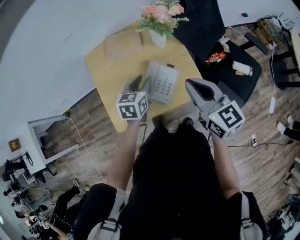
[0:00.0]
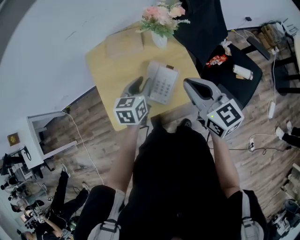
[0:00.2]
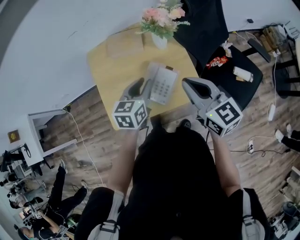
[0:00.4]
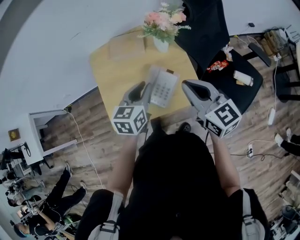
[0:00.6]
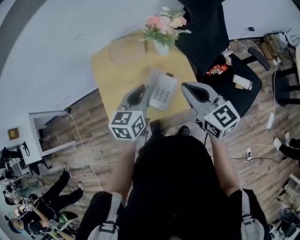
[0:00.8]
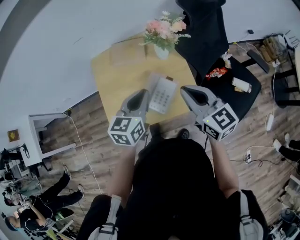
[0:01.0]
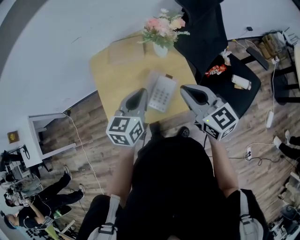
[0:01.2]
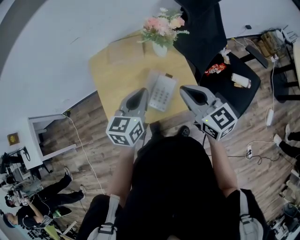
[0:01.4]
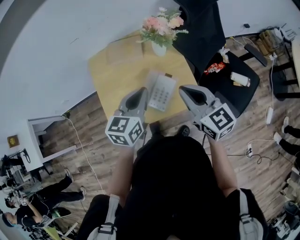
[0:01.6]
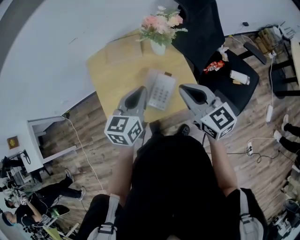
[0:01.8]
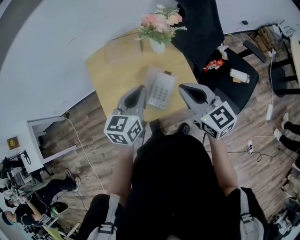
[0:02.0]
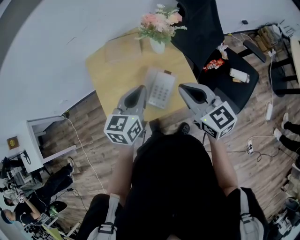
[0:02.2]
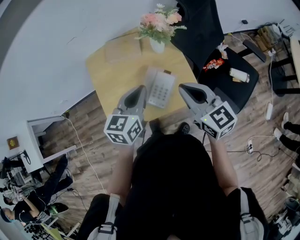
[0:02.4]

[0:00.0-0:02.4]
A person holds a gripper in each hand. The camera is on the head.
0:00.0 to 0:01.2: The left gripper goes approximately 10 cm upward, and closes.
0:01.2 to 0:02.4: The grippers make only small movements.

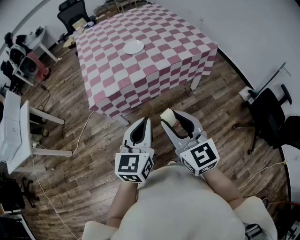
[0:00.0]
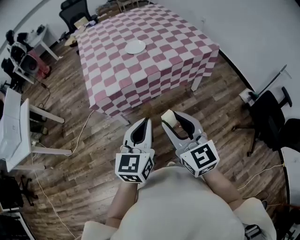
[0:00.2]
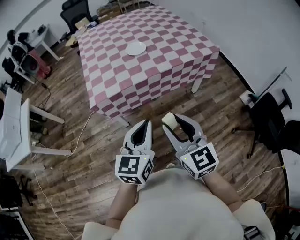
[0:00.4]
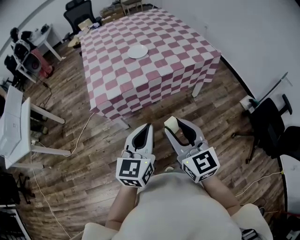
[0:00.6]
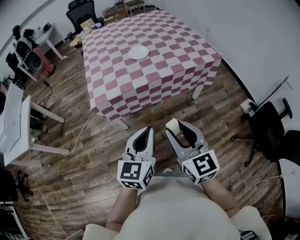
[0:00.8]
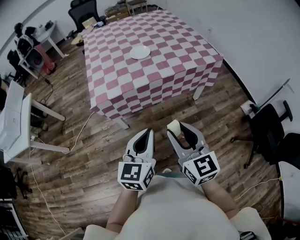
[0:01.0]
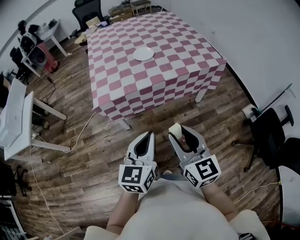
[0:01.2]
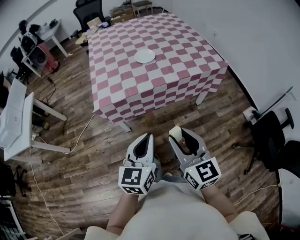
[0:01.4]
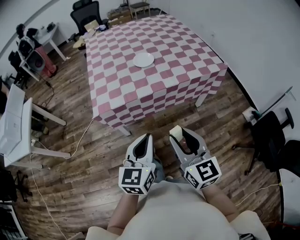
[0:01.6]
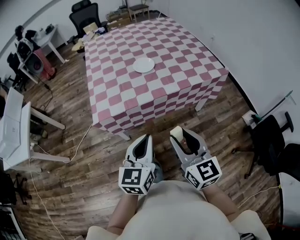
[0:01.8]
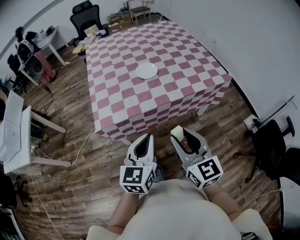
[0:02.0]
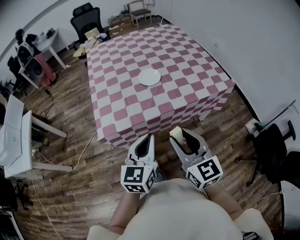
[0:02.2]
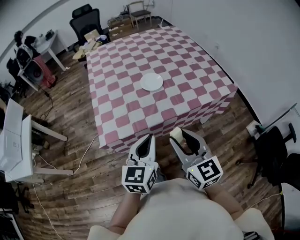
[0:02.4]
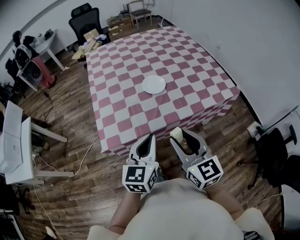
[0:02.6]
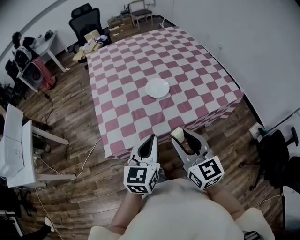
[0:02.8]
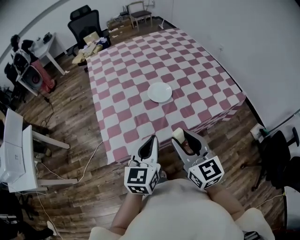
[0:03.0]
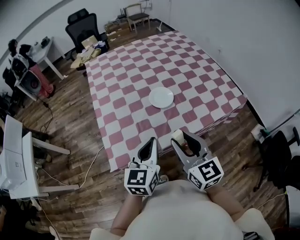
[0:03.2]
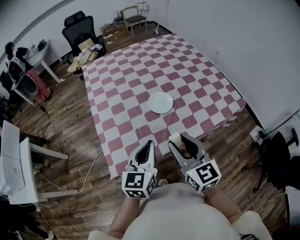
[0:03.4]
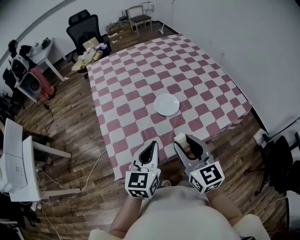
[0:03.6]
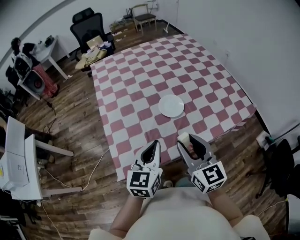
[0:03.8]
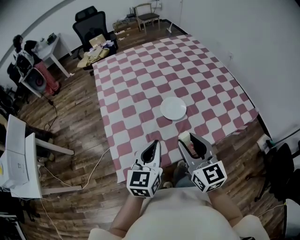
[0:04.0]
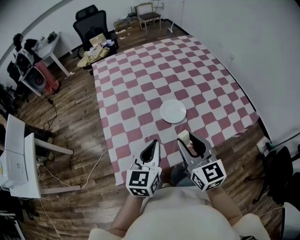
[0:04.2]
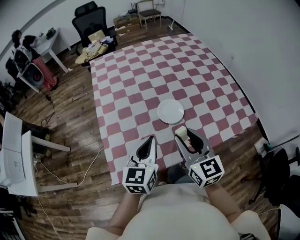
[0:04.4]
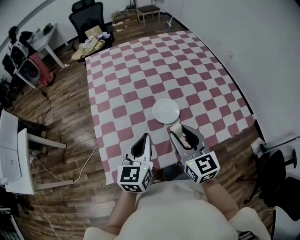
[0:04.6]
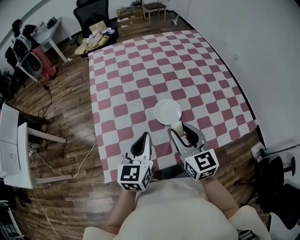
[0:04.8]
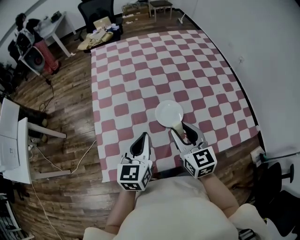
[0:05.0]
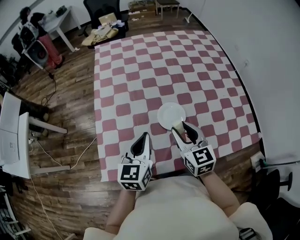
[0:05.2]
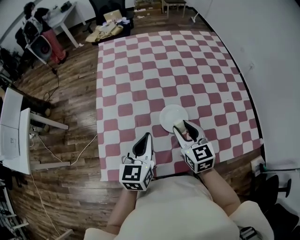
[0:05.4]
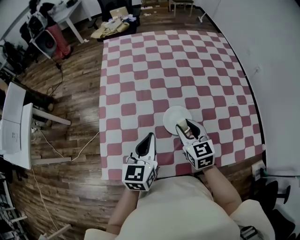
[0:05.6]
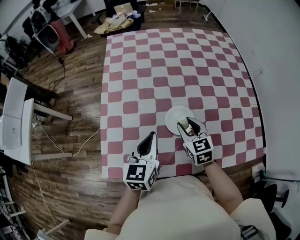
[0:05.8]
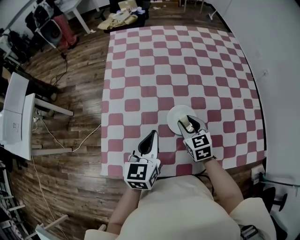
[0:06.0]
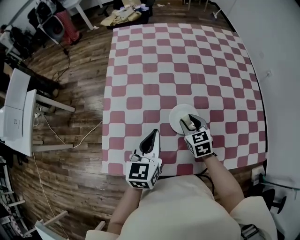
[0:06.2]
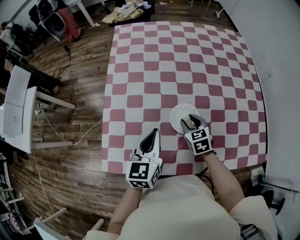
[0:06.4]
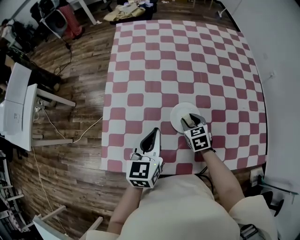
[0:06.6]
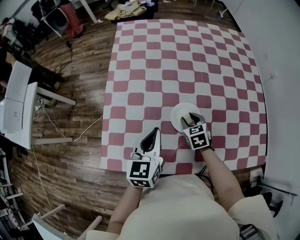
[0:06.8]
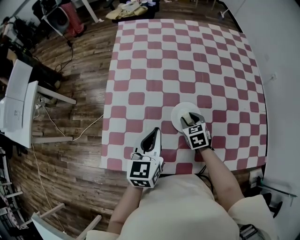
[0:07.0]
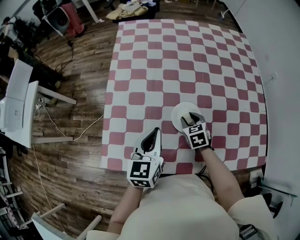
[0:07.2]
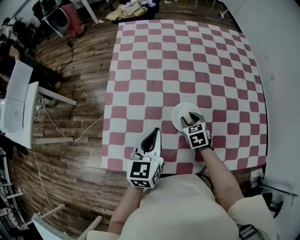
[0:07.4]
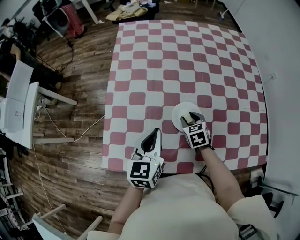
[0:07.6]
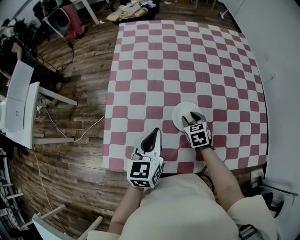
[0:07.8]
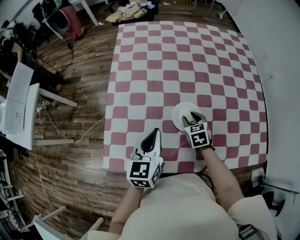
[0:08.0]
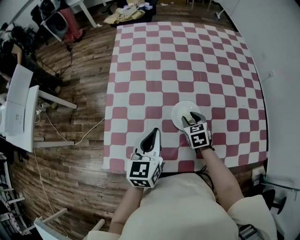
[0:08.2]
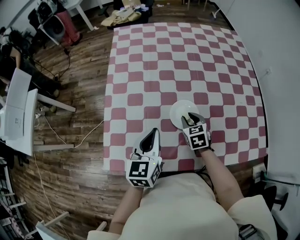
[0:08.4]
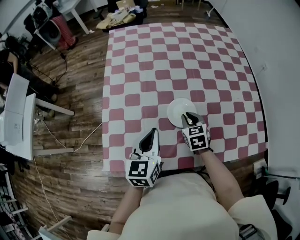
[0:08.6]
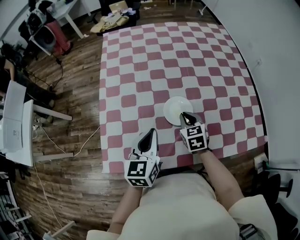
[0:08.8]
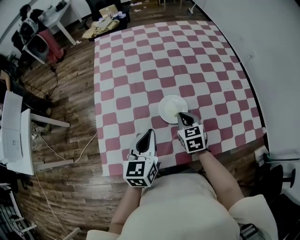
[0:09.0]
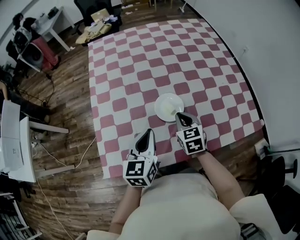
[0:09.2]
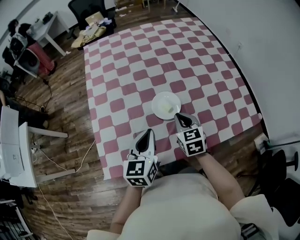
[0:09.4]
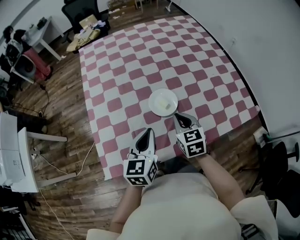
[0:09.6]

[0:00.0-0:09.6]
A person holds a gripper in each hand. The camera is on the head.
0:00.0 to 0:01.6: There are only small adjustments of the grippers.
0:01.6 to 0:03.2: Both grippers travel together forward, about 30 cm.
0:03.2 to 0:04.8: Both grippers travel together forward, roughly 15 cm.
0:04.8 to 0:06.4: The right gripper heads downward and forward, covering roughly 25 cm, and rotates some 30 degrees. Meanwhile the left gripper shifts approximately 5 cm forward.
0:06.4 to 0:08.0: There are only small adjustments of the grippers.
0:08.0 to 0:09.6: The right gripper travels backward and upward by approximately 15 cm, rotates approximately 20 degrees, and closes its fingers. The left gripper shifts about 5 cm backward.

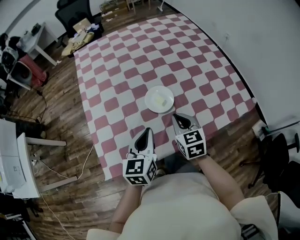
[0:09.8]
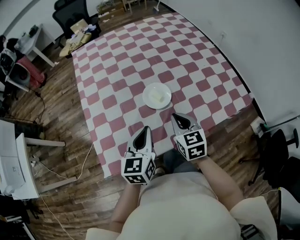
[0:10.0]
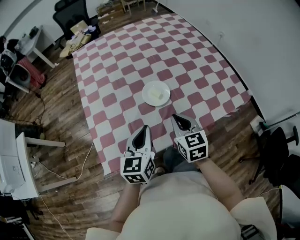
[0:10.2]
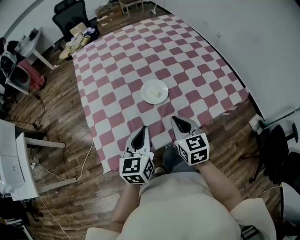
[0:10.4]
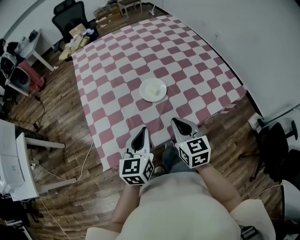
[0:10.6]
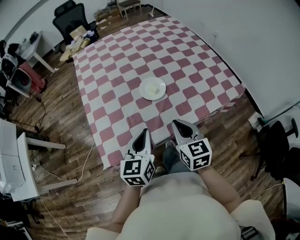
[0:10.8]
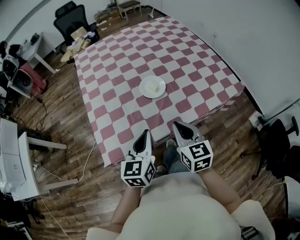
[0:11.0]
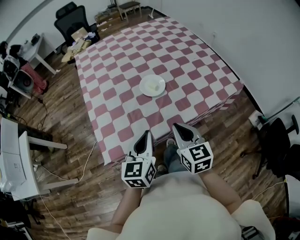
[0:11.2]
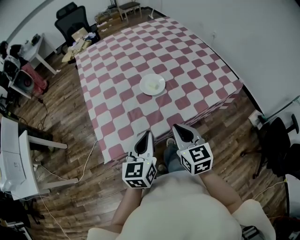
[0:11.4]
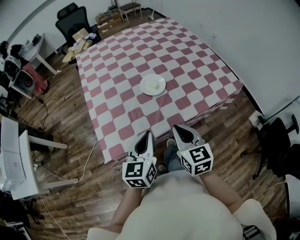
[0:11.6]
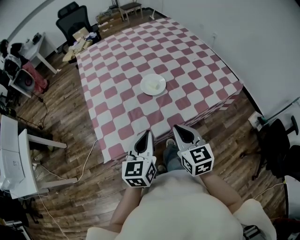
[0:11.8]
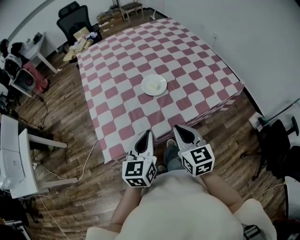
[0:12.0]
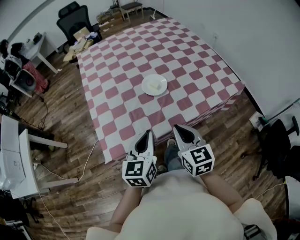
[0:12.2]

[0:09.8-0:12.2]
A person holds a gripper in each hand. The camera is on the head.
0:09.8 to 0:11.0: Both grippers travel together backward, approximately 15 cm.
0:11.0 to 0:12.2: The grippers stay close to where they were, moving slightly.

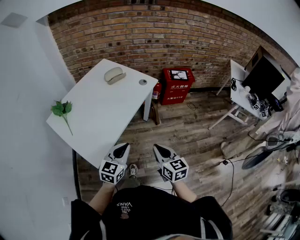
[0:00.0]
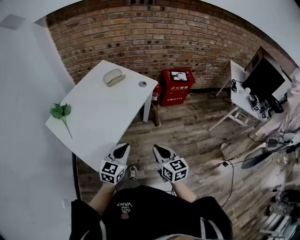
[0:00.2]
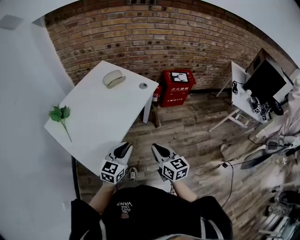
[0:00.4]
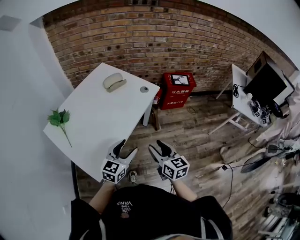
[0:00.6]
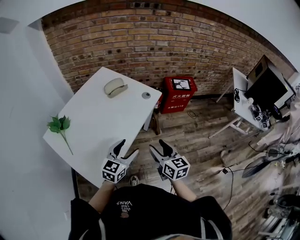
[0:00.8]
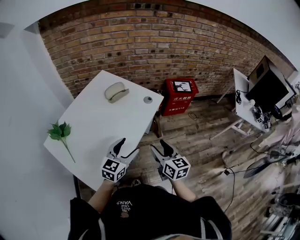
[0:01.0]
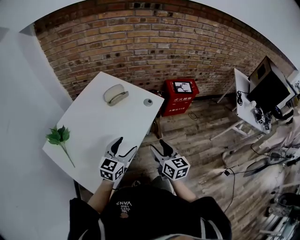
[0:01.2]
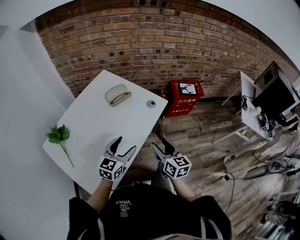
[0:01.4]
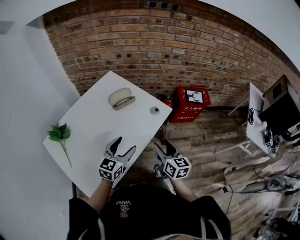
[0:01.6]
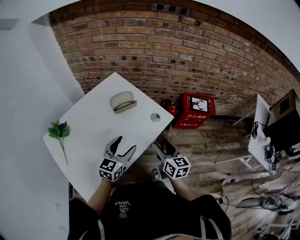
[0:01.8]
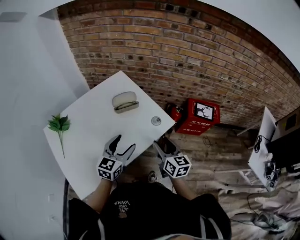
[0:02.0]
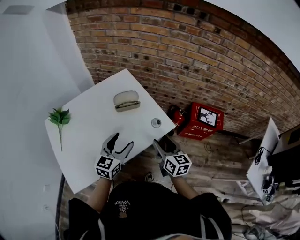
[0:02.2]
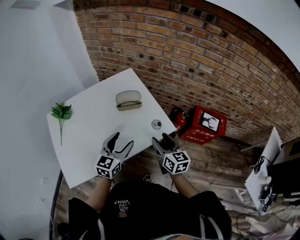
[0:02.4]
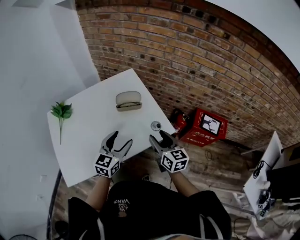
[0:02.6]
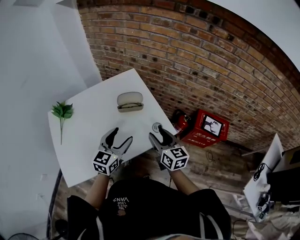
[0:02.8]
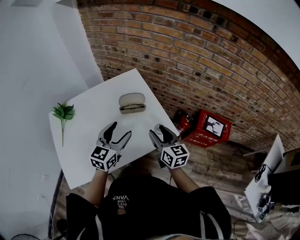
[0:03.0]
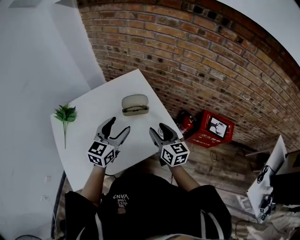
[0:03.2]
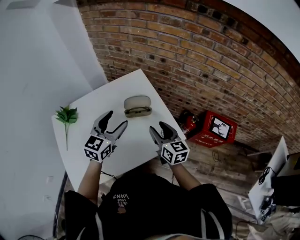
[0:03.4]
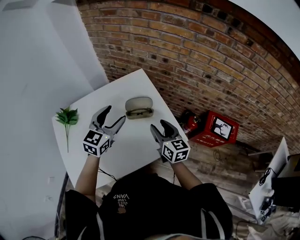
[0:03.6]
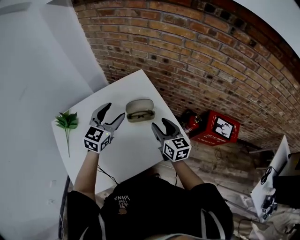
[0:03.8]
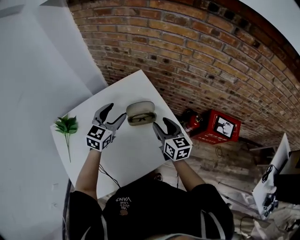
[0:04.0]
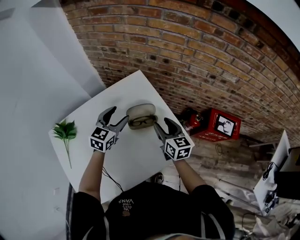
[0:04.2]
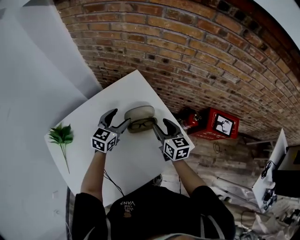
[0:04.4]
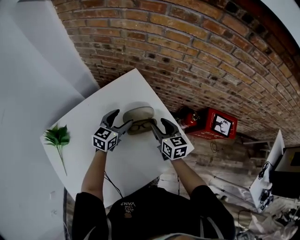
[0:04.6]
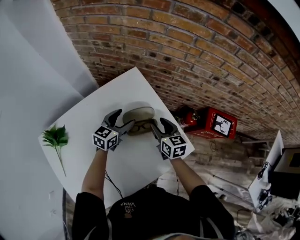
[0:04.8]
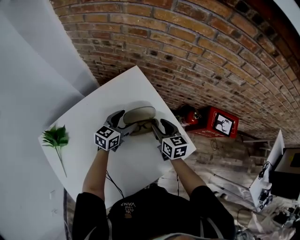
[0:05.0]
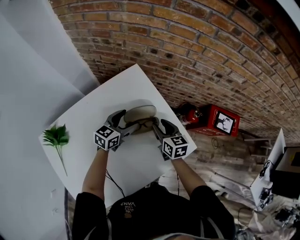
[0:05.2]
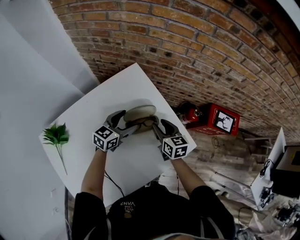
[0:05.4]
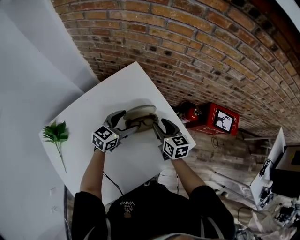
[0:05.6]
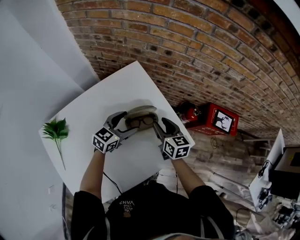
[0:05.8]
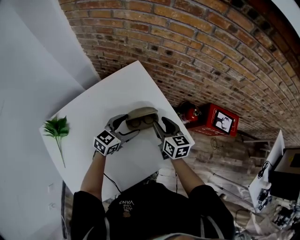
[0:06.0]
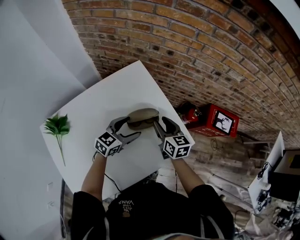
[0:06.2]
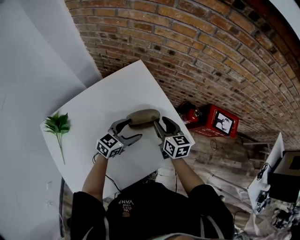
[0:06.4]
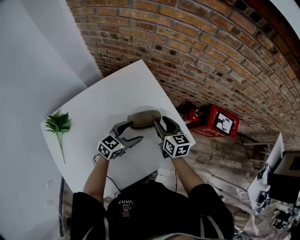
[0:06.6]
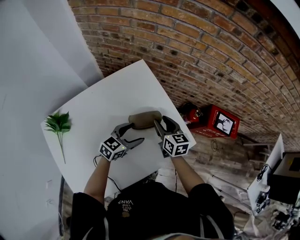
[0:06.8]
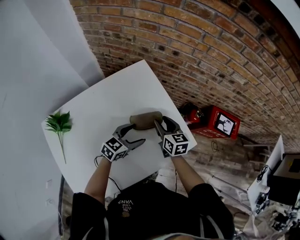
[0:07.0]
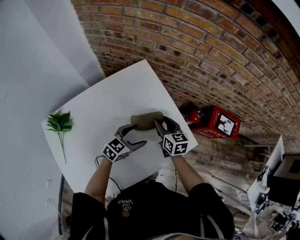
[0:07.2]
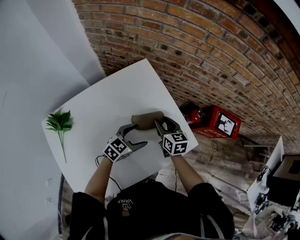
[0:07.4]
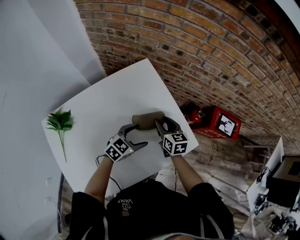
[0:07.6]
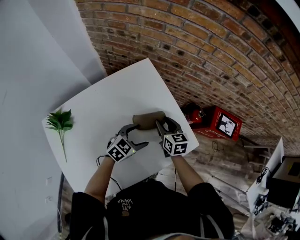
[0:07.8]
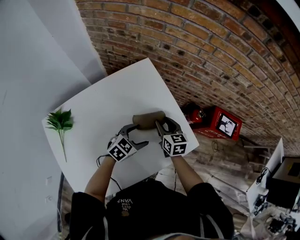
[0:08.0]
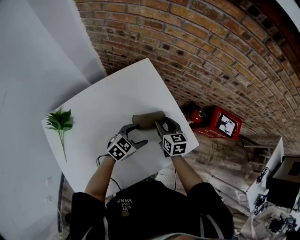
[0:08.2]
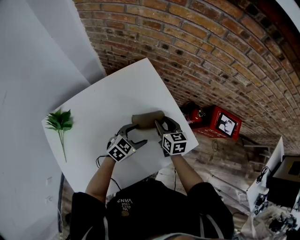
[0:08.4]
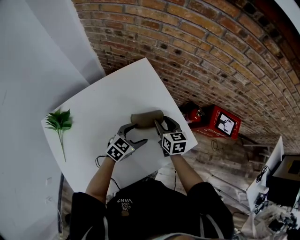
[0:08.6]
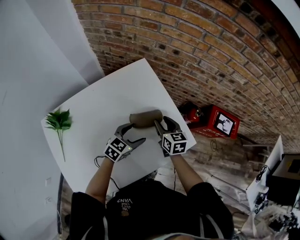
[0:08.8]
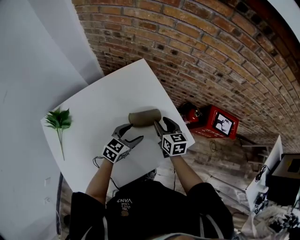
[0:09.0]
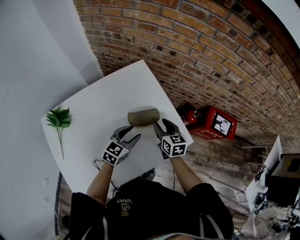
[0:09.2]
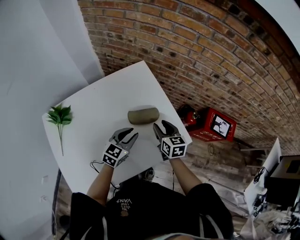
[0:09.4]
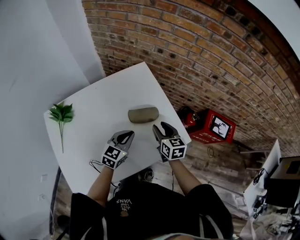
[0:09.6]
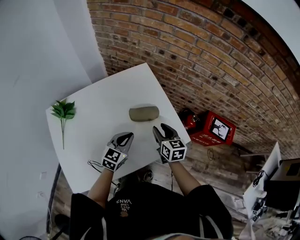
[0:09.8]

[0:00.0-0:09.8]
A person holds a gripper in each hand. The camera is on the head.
0:00.0 to 0:01.4: Both grippers move forward, about 25 cm. The right gripper opens up. Meanwhile the left gripper opens up.
0:01.4 to 0:02.8: The right gripper moves approximately 20 cm, and turns by some 30 degrees, while the left gripper changes place by roughly 15 cm, and swivels roughly 30 degrees.
0:02.8 to 0:04.2: The right gripper is displaced forward by some 15 cm, while the left gripper goes about 25 cm forward and to the left.
0:04.2 to 0:05.6: Both grippers travel together downward, some 10 cm. The left gripper turns by approximately 20 degrees.
0:05.6 to 0:07.0: The left gripper heads backward, covering about 10 cm.
0:07.0 to 0:08.4: There are only small adjustments of the grippers.
0:08.4 to 0:09.8: The left gripper travels backward and upward by roughly 10 cm, turns by approximately 30 degrees, and closes its fingers; the right gripper heads backward, covering some 10 cm.
